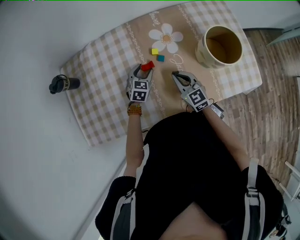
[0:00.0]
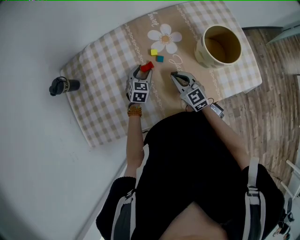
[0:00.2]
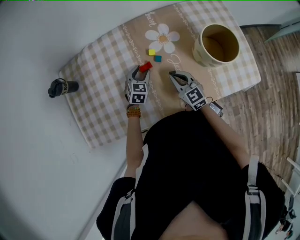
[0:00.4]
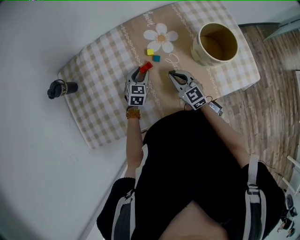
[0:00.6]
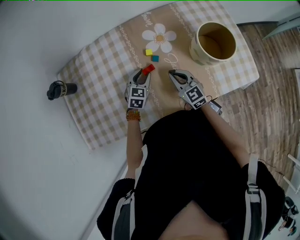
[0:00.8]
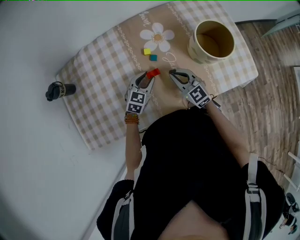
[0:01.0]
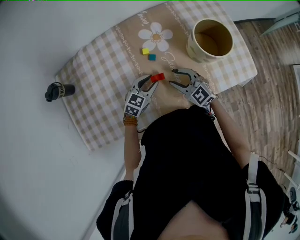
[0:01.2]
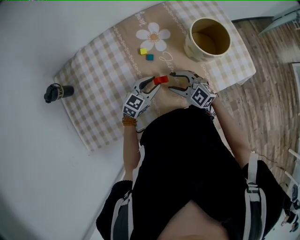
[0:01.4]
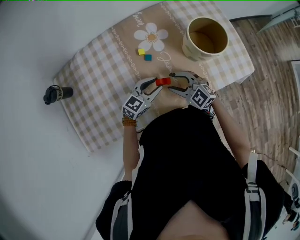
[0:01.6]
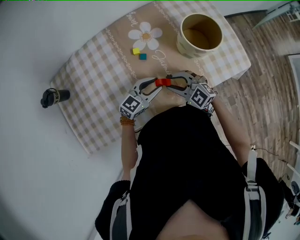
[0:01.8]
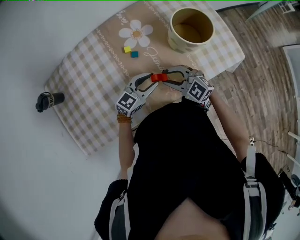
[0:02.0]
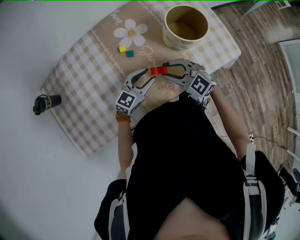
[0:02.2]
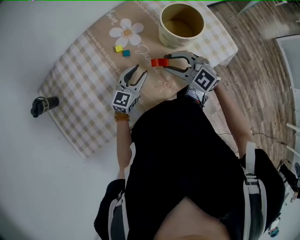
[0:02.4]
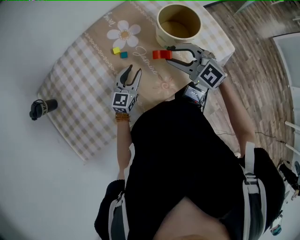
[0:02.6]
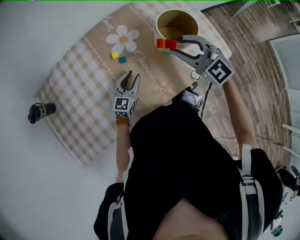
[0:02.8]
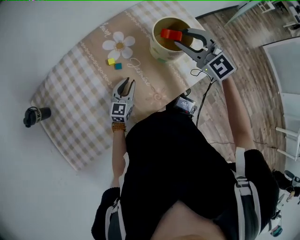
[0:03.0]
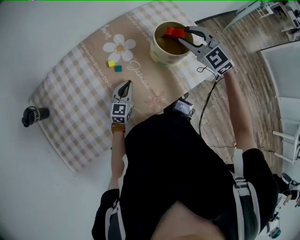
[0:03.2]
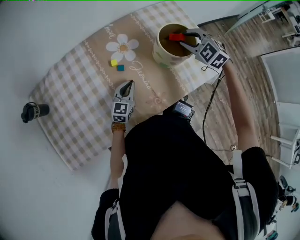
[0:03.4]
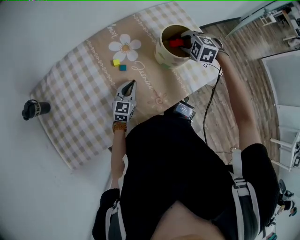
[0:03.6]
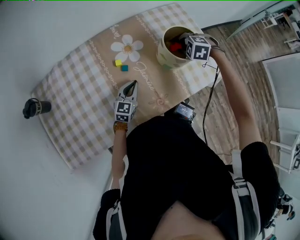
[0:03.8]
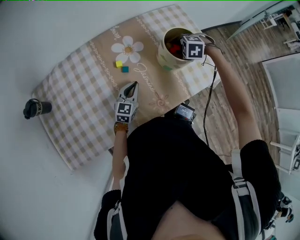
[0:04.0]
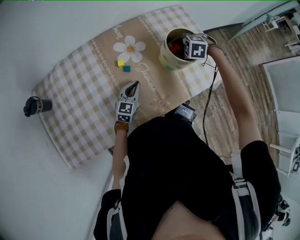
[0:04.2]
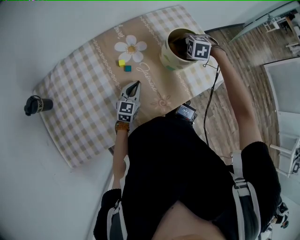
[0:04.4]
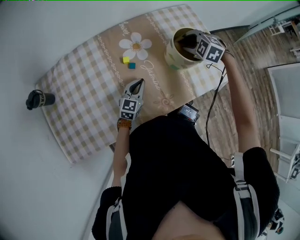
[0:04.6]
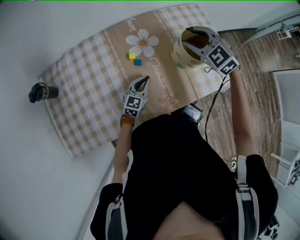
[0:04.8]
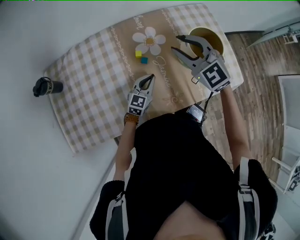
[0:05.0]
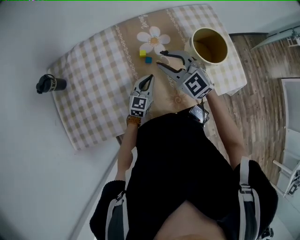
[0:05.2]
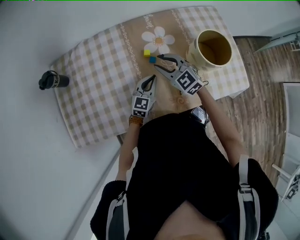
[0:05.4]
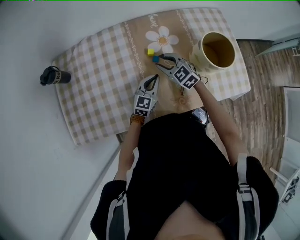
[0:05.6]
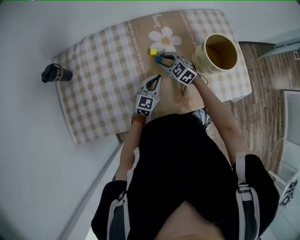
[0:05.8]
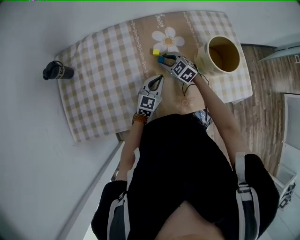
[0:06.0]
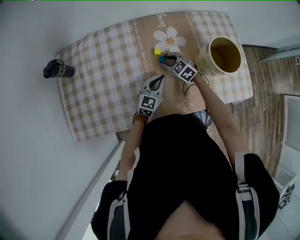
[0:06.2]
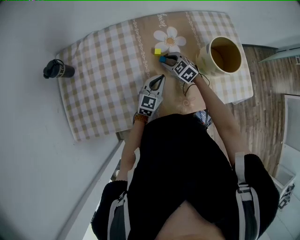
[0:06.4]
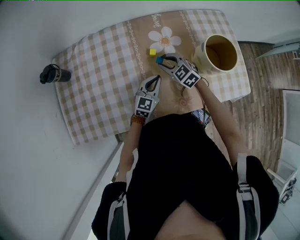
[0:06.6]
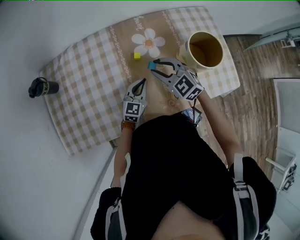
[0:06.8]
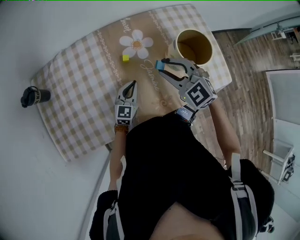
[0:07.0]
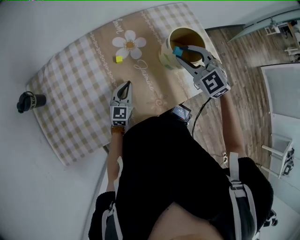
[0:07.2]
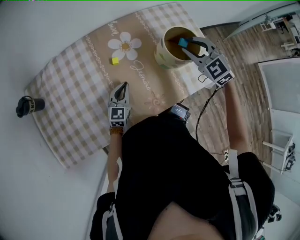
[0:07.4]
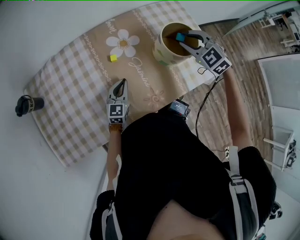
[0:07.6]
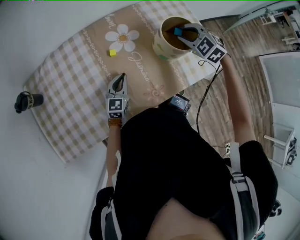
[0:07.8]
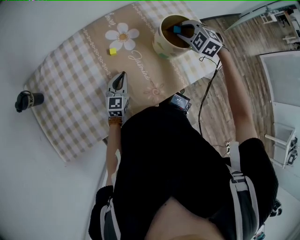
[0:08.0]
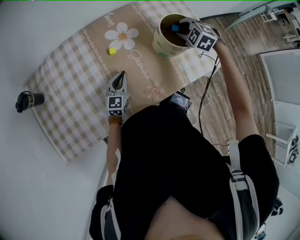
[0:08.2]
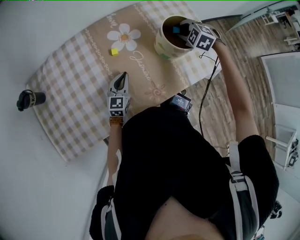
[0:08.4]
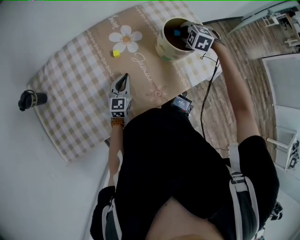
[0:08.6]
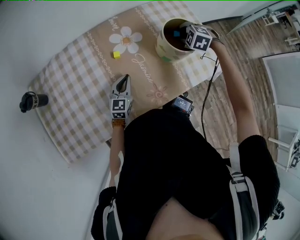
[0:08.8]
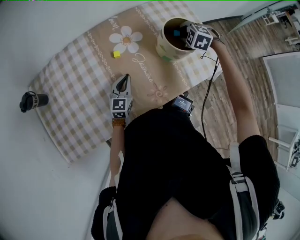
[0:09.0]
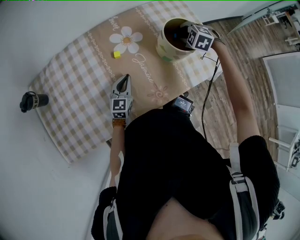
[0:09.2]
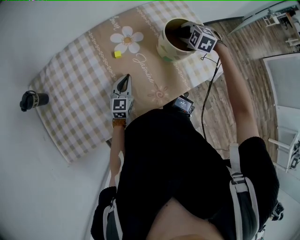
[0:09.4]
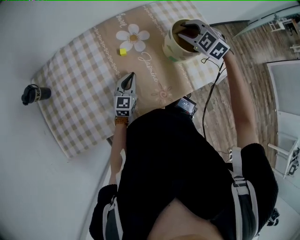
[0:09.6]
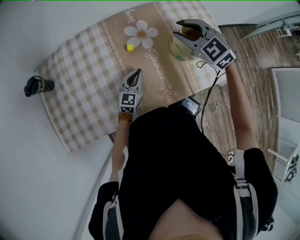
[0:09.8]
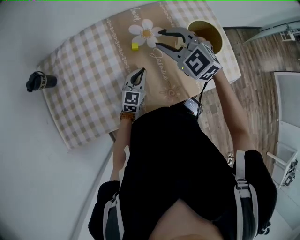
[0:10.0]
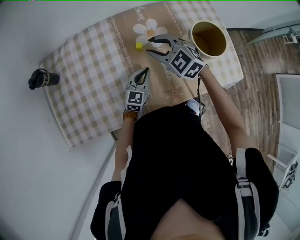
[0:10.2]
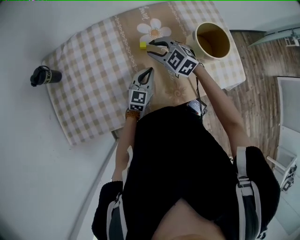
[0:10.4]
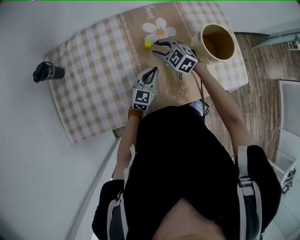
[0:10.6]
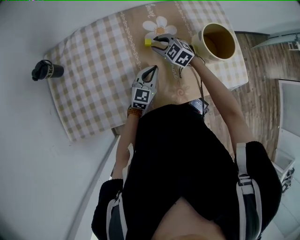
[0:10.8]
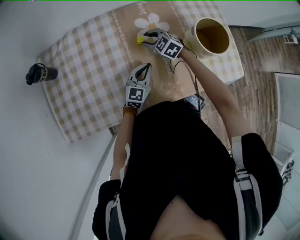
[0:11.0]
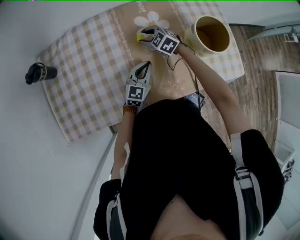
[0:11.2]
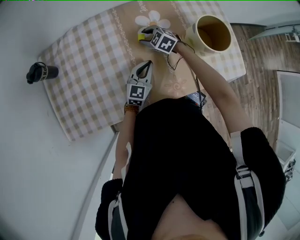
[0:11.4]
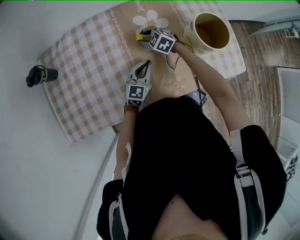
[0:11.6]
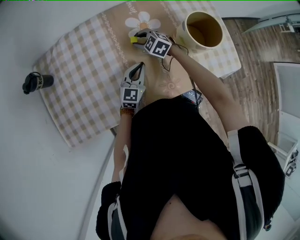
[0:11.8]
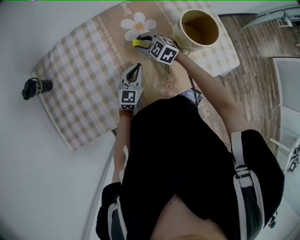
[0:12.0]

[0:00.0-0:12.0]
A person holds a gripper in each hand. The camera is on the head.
0.0 to 1.6 s: The right gripper heads backward, covering roughly 5 cm, rotates approximately 30 degrees, and opens, while the left gripper goes some 15 cm backward, to the right and upward, and rotates some 40 degrees.
1.6 to 3.0 s: The right gripper heads upward, to the right and forward, covering approximately 30 cm, and swivels about 20 degrees.
3.0 to 4.4 s: The right gripper moves downward, about 15 cm, and angles its fingers downward, by some 60 degrees.
4.4 to 6.0 s: The right gripper travels to the left by some 25 cm, and swivels approximately 40 degrees.
6.0 to 7.6 s: The right gripper travels to the right and upward by about 30 cm, and swivels about 20 degrees.
7.6 to 9.0 s: The right gripper travels downward by about 10 cm, and swivels roughly 30 degrees.
9.0 to 10.4 s: The right gripper moves to the left, some 25 cm, and turns by some 40 degrees.
10.4 to 12.0 s: The right gripper travels downward by about 10 cm.

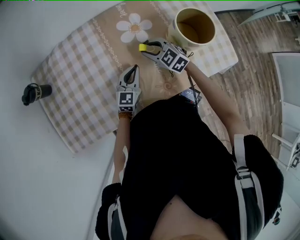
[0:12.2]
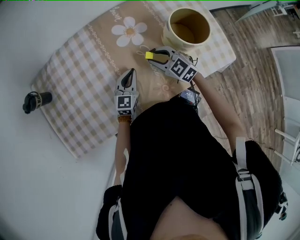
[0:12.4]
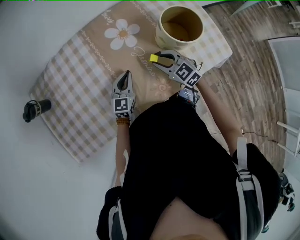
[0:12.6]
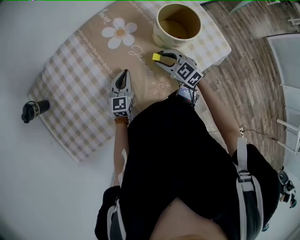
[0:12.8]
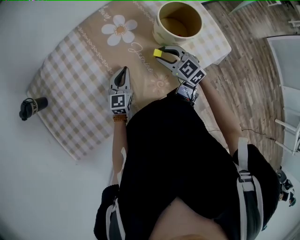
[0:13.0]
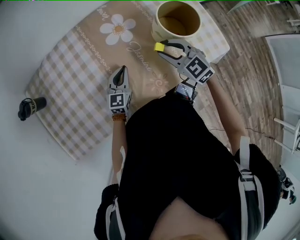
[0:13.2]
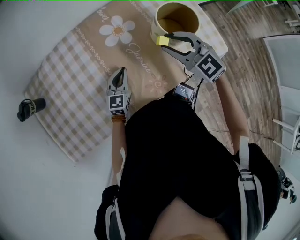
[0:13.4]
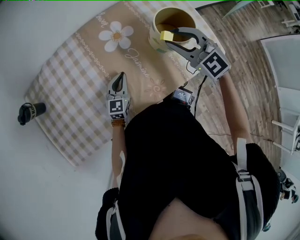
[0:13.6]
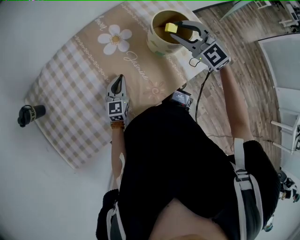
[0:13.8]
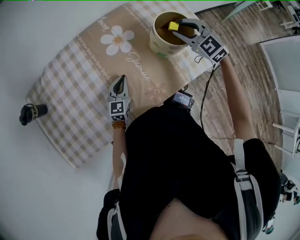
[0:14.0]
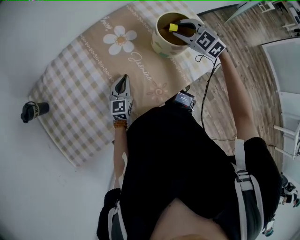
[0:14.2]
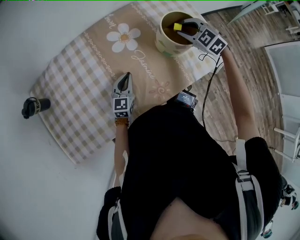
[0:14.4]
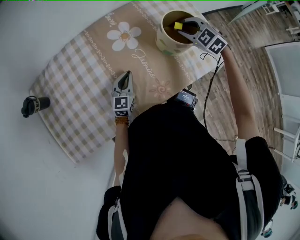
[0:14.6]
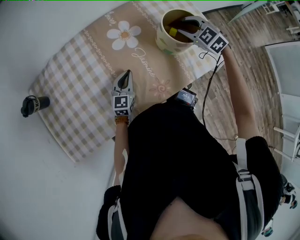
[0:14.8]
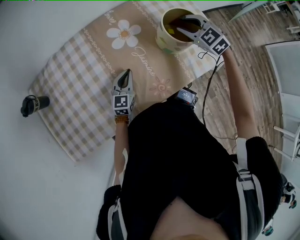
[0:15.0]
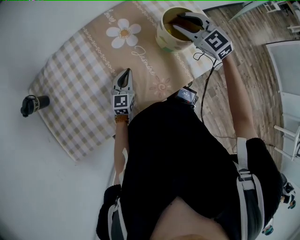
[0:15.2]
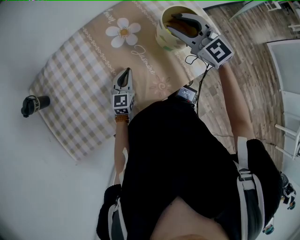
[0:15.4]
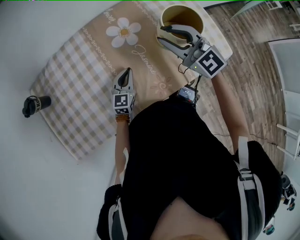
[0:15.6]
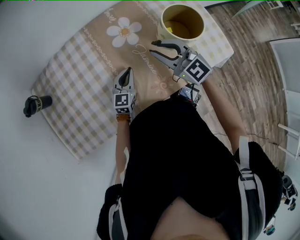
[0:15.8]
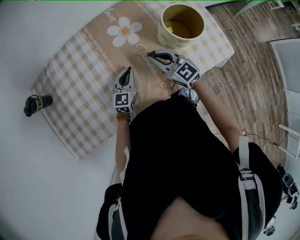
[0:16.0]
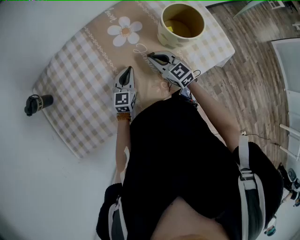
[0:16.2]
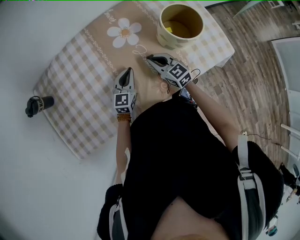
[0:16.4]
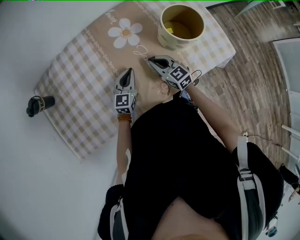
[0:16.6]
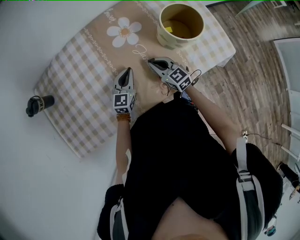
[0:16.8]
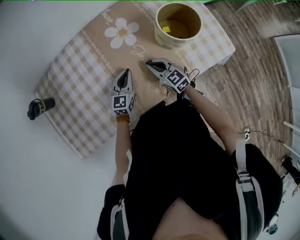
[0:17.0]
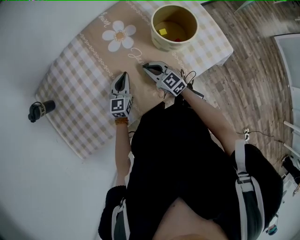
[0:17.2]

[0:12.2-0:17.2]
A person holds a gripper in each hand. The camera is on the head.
12.2 to 13.8 s: The right gripper shifts roughly 25 cm upward and to the right, and changes its angle by roughly 20 degrees.
13.8 to 15.6 s: The right gripper heads to the left, covering roughly 10 cm, and rotates some 20 degrees.
15.6 to 17.2 s: The right gripper moves downward, approximately 25 cm, swivels roughly 30 degrees, and closes.

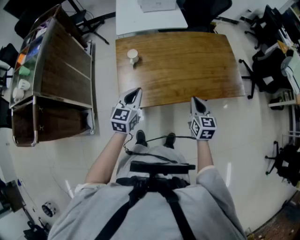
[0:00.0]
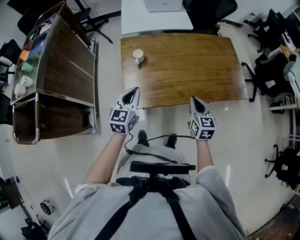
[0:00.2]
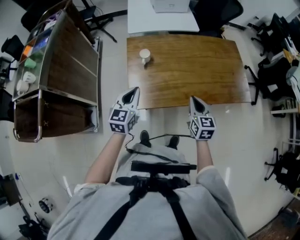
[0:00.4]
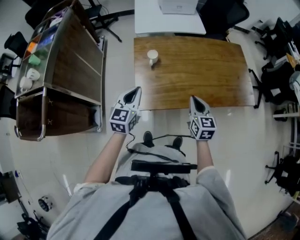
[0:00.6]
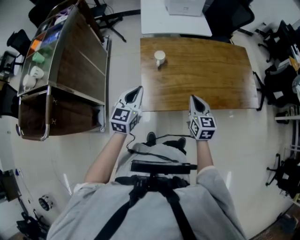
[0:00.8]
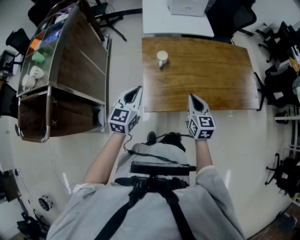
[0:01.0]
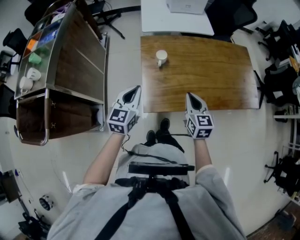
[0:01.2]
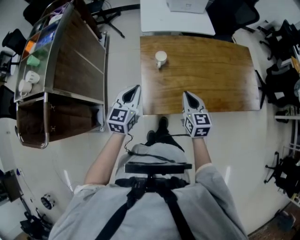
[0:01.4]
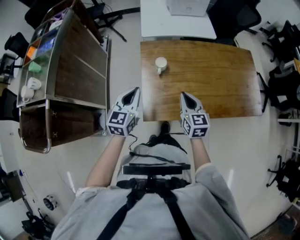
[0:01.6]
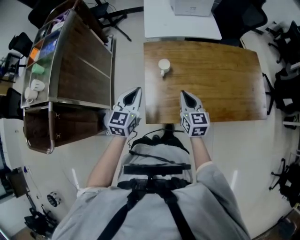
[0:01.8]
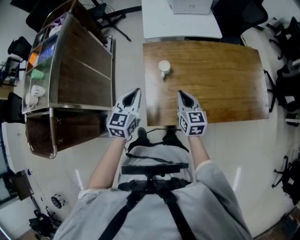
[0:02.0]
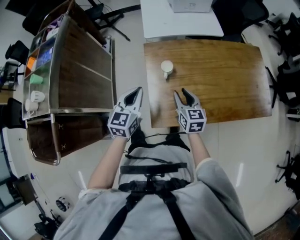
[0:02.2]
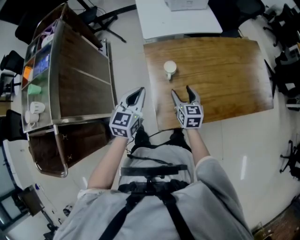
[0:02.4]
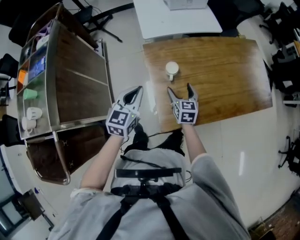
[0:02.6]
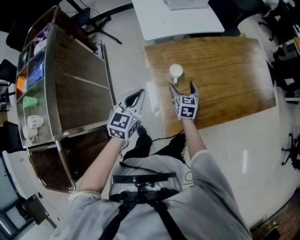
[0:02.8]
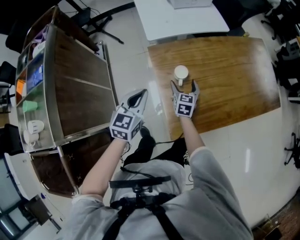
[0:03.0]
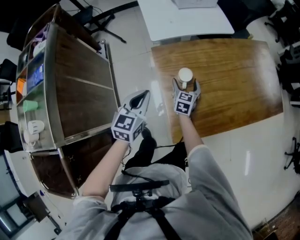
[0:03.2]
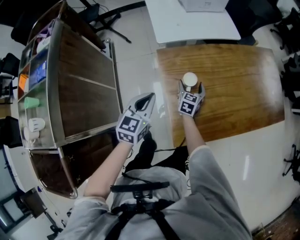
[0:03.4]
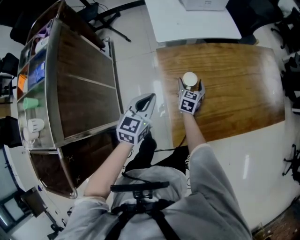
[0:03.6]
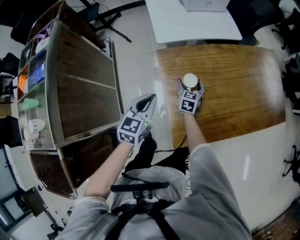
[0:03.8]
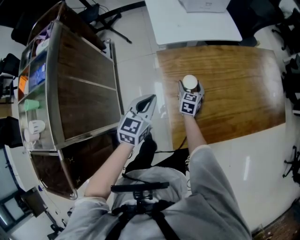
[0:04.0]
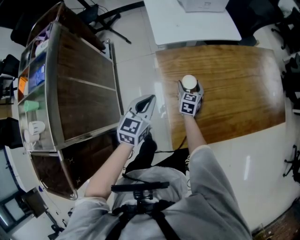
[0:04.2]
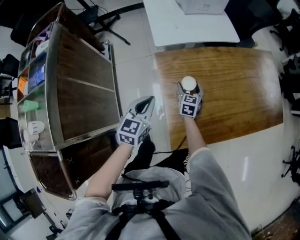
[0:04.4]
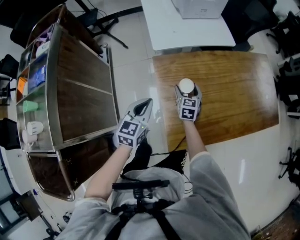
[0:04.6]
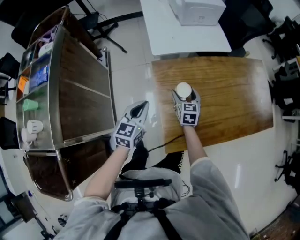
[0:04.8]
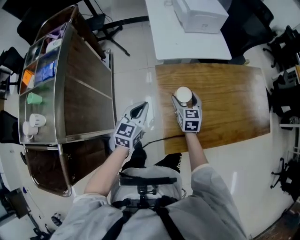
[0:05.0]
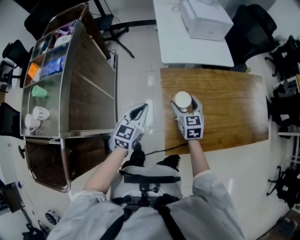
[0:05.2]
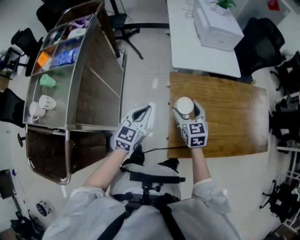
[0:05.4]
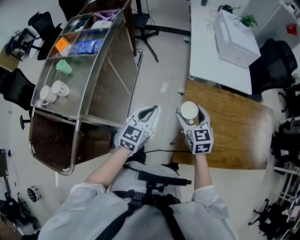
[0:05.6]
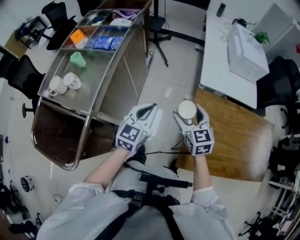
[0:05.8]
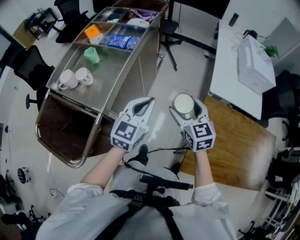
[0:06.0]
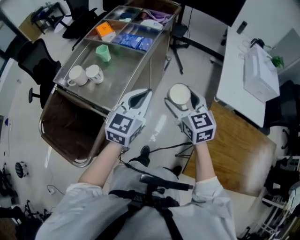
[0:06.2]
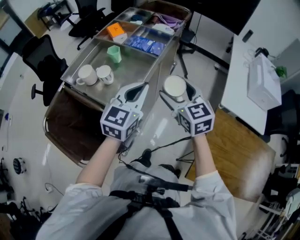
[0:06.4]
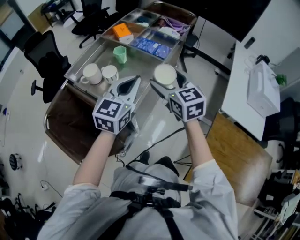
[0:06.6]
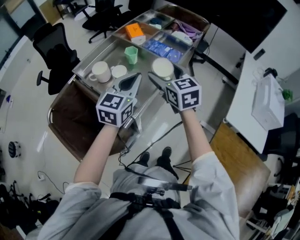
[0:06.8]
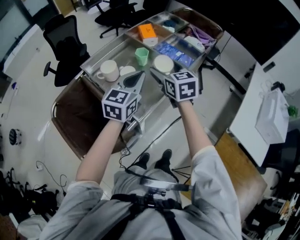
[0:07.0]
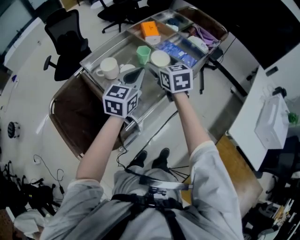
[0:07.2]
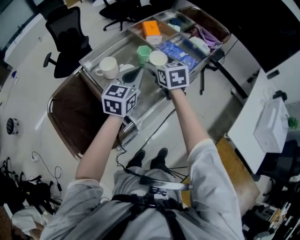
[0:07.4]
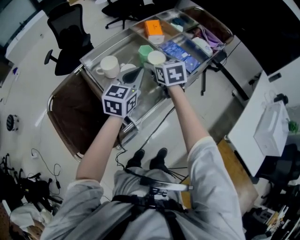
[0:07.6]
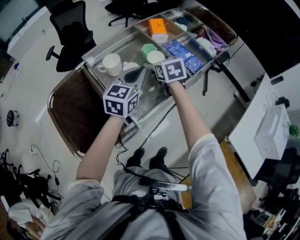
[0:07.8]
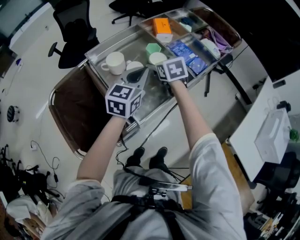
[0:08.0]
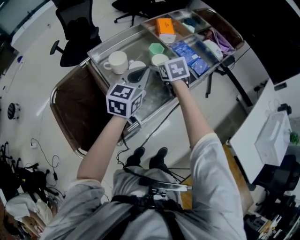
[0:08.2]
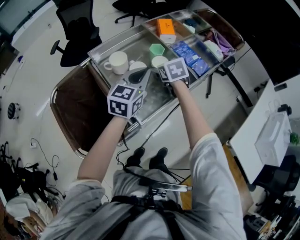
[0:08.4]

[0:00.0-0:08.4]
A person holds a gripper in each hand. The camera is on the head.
0.0 to 1.4 s: Both grippers move to the left, about 20 cm.
1.4 to 2.8 s: The left gripper shifts roughly 15 cm forward and to the left. Meanwhile the right gripper is displaced forward, downward and to the left by some 25 cm, changes its angle by some 20 degrees, and opens up.
2.8 to 4.2 s: The left gripper is displaced downward by roughly 5 cm, while the right gripper shifts approximately 10 cm forward and downward.
4.2 to 5.6 s: The right gripper shifts approximately 25 cm upward, and changes its angle by approximately 40 degrees; the left gripper ends up roughly 15 cm from where it was.
5.6 to 7.0 s: Both grippers are carried some 50 cm. The right gripper turns by some 40 degrees. The left gripper changes its angle by about 40 degrees.
7.0 to 8.4 s: The left gripper shifts by approximately 5 cm. The right gripper goes some 15 cm downward, forward and to the left, and changes its angle by some 30 degrees.
